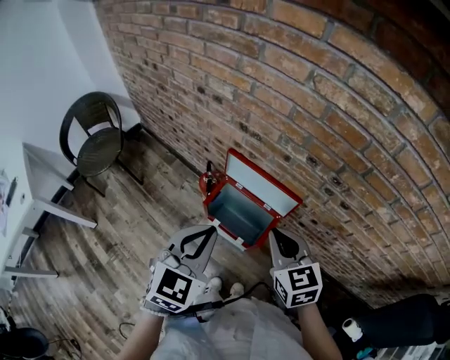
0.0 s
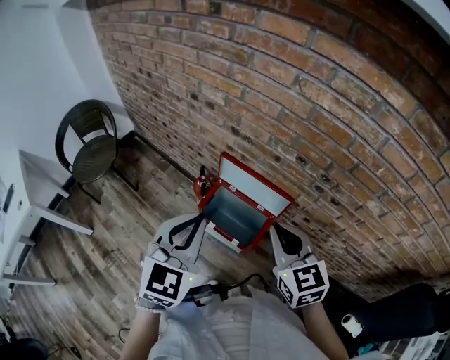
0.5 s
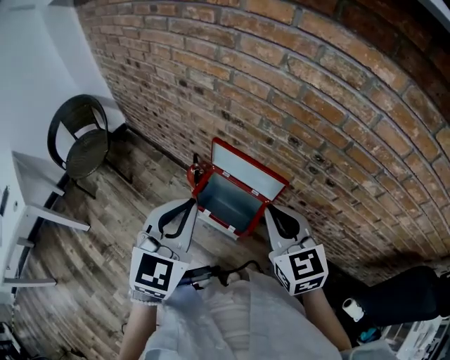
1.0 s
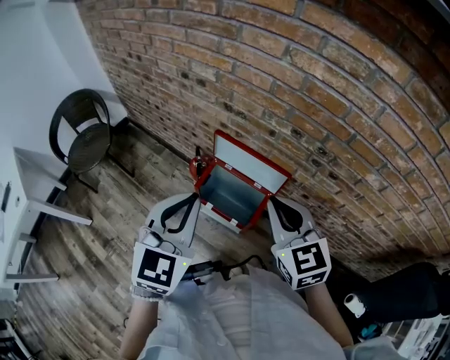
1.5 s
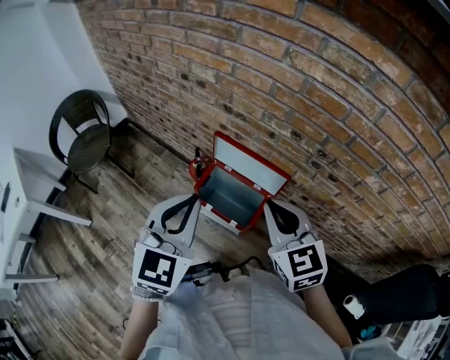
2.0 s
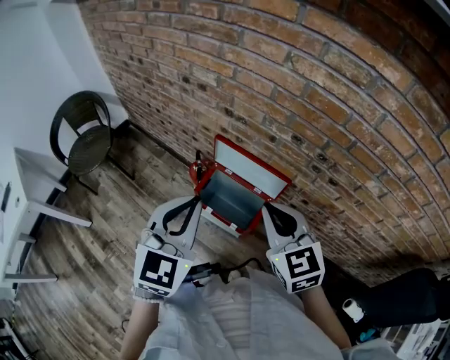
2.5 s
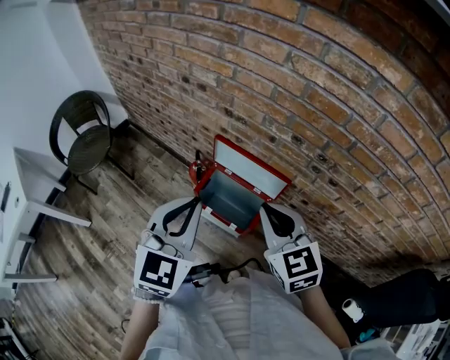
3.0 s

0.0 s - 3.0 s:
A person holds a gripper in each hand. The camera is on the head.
0.0 s - 1.5 s: The two grippers go about 5 cm upward.
1.5 s - 3.0 s: The grippers stay close to where they were, moving slightly.

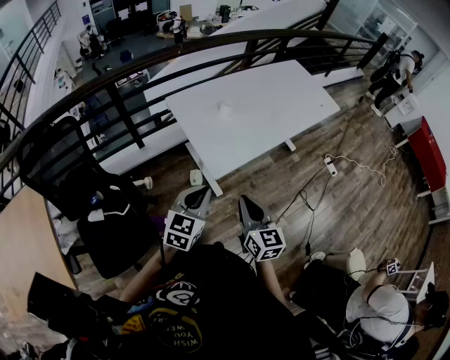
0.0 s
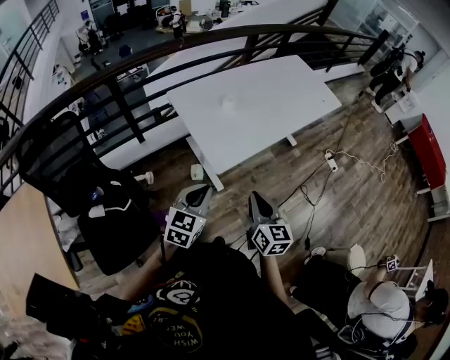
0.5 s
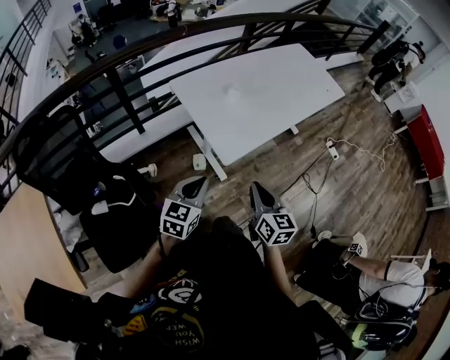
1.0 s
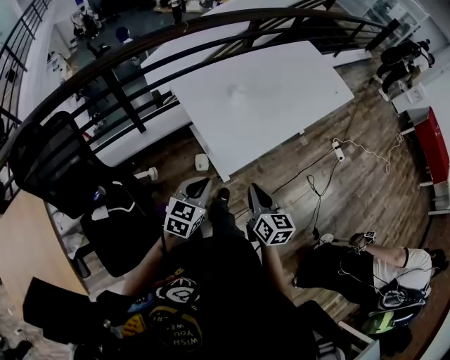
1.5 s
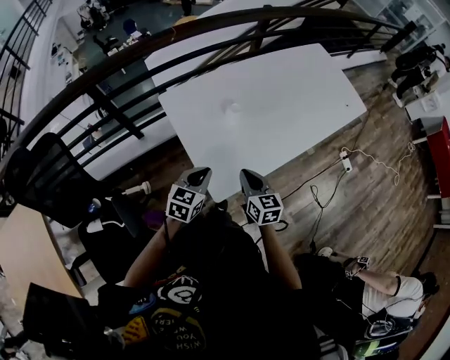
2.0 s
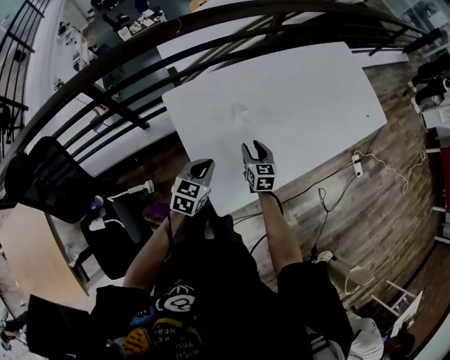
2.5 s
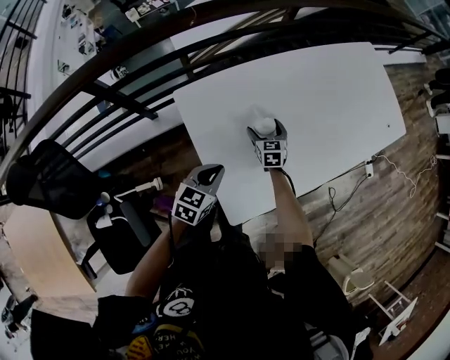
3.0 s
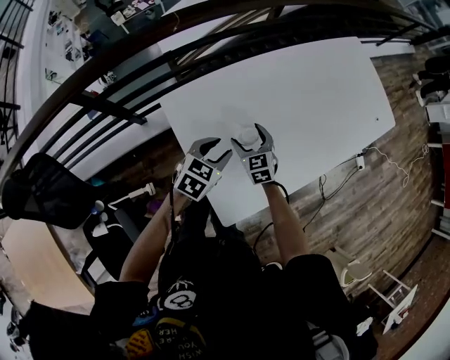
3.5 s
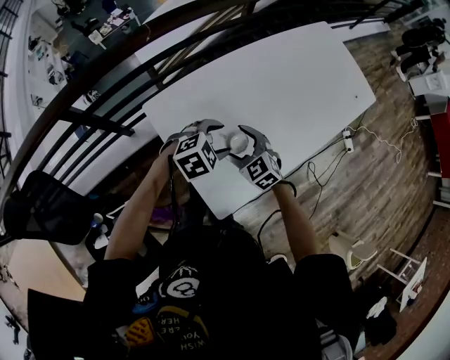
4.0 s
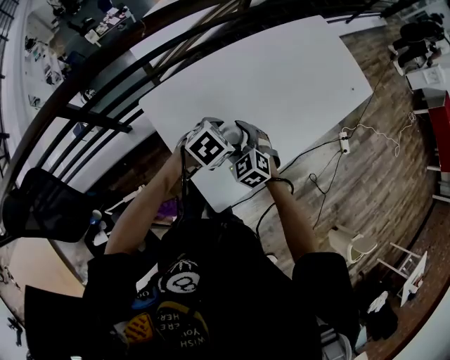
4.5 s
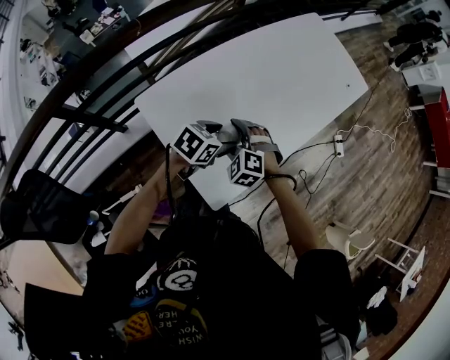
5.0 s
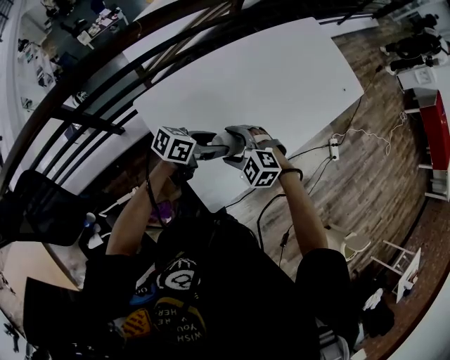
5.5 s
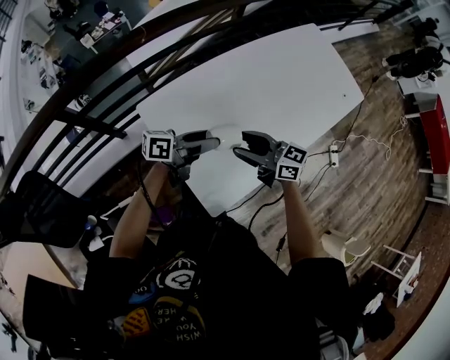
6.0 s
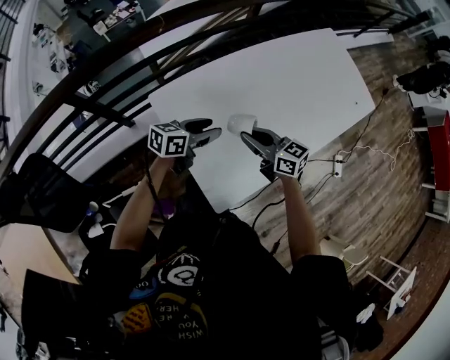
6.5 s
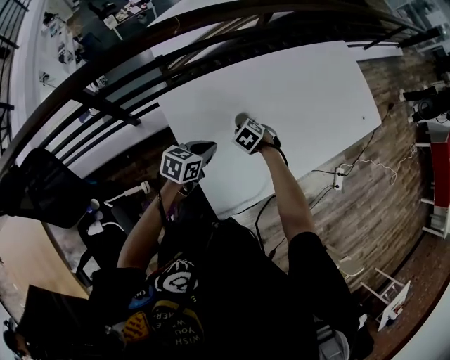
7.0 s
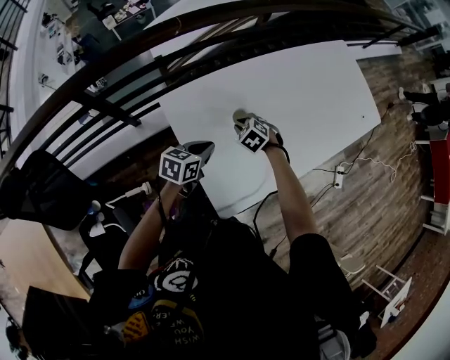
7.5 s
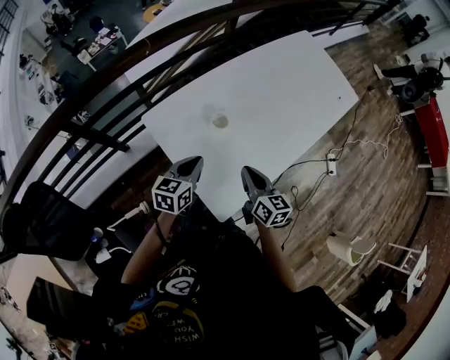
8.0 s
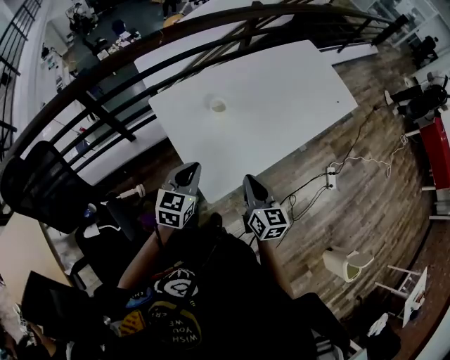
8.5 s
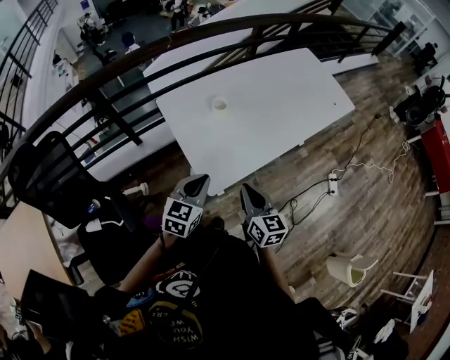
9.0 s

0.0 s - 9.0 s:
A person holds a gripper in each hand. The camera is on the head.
0.0 s - 2.0 s: The two grippers go approximately 30 cm forward and downward.
2.0 s - 4.5 s: The right gripper moves forward and to the left, some 20 cm, rotates around the line of its fingers by some 50 degrees, counterclockwise from behind, and opens its fingers; the left gripper travels forward by some 20 cm, changes its angle by approximately 40 degrees, and opens its fingers.
4.5 s - 7.0 s: The left gripper shifts by some 10 cm, rotates approximately 40 degrees, and closes its fingers. Meanwhile the right gripper goes roughly 10 cm downward, turns by about 30 degrees, and closes its fingers.
7.0 s - 9.0 s: The left gripper shifts by approximately 30 cm, and changes its angle by about 30 degrees. Meanwhile the right gripper changes place by approximately 50 cm, and angles its fingers upward, by about 60 degrees.

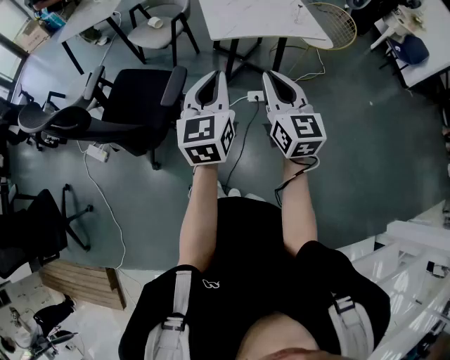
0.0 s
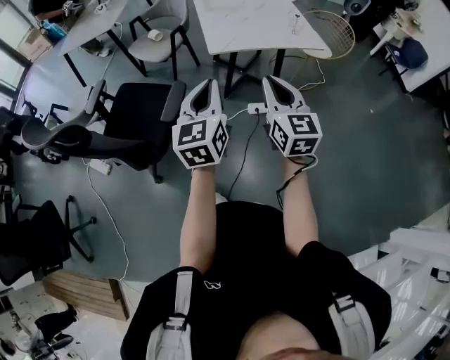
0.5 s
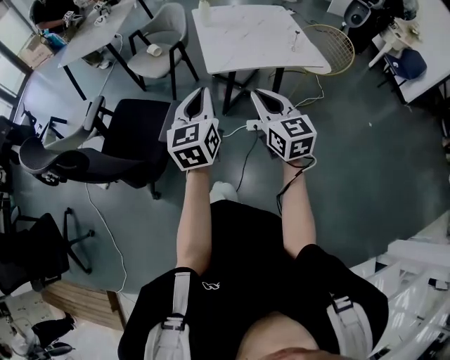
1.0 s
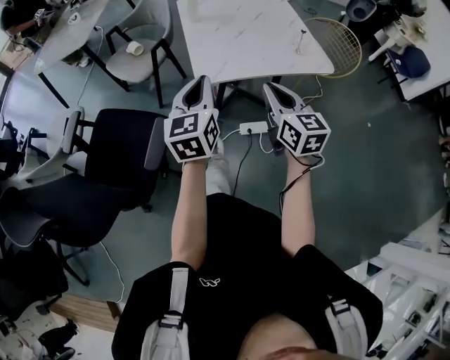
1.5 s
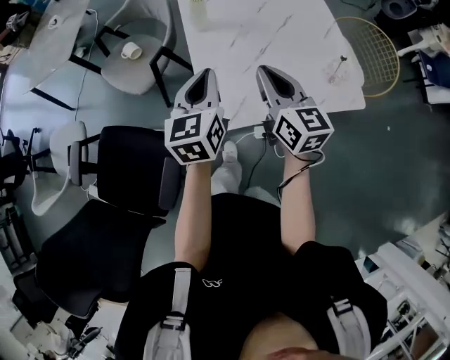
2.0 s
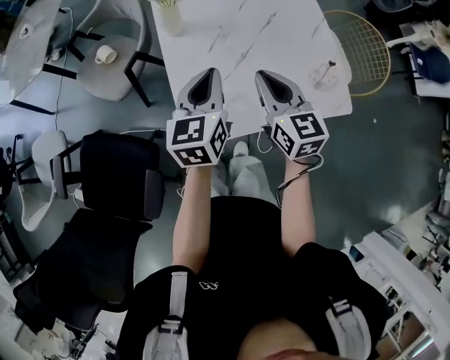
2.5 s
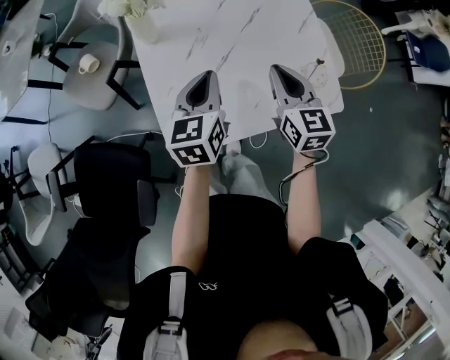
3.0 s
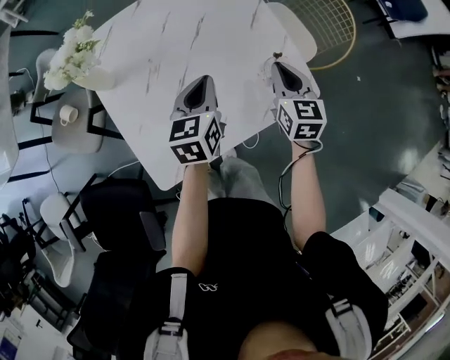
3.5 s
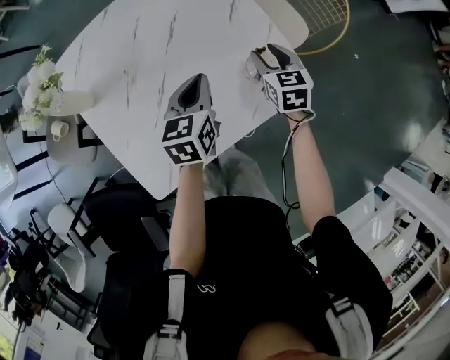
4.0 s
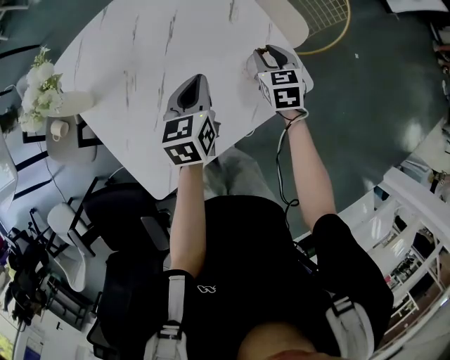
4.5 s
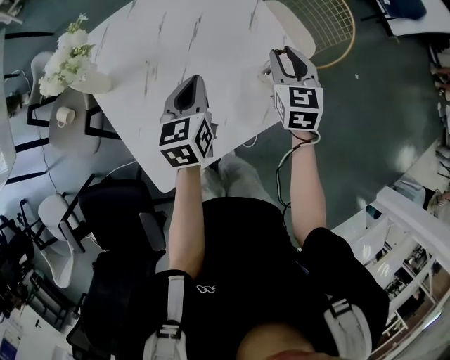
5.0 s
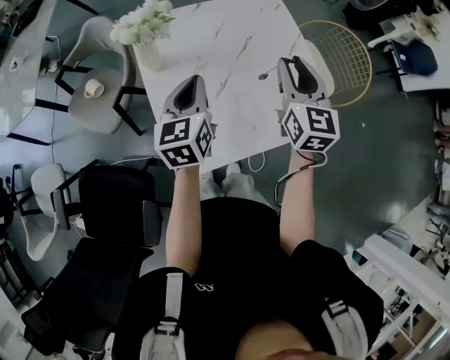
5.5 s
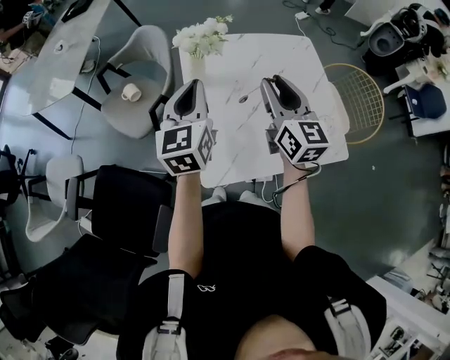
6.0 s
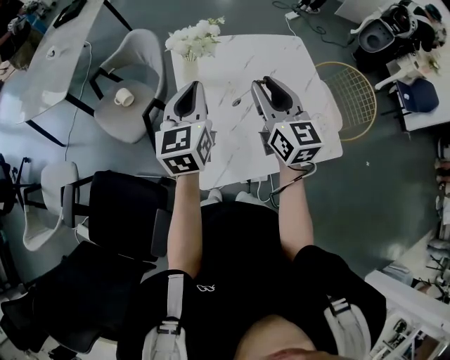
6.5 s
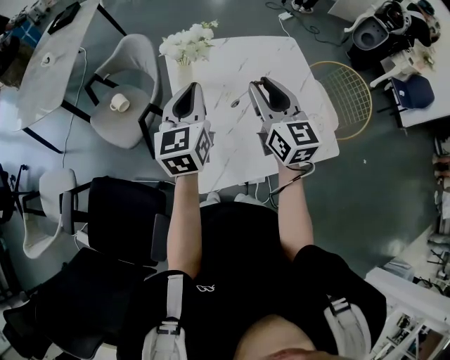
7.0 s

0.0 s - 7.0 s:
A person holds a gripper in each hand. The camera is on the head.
0.0 s - 2.0 s: Both grippers are carried forward, roughly 60 cm.
2.0 s - 3.5 s: The right gripper changes place by about 35 cm, and rotates some 30 degrees, while the left gripper shifts by some 30 cm, and swivels some 20 degrees.
3.5 s - 5.0 s: The right gripper reaches some 10 cm downward, then returns, and opens.
5.0 s - 7.0 s: The right gripper changes place by approximately 30 cm, and changes its angle by about 40 degrees. Meanwhile the left gripper changes place by some 25 cm, and swivels approximately 30 degrees.

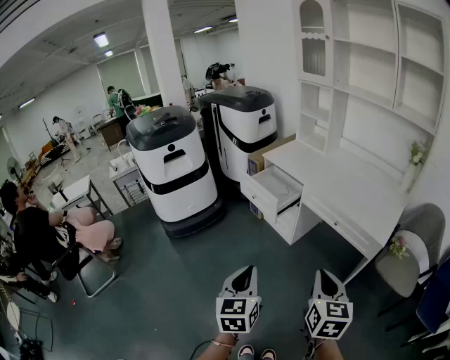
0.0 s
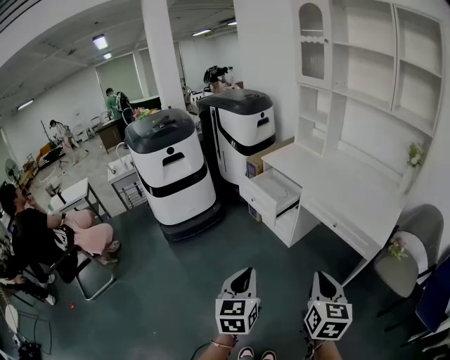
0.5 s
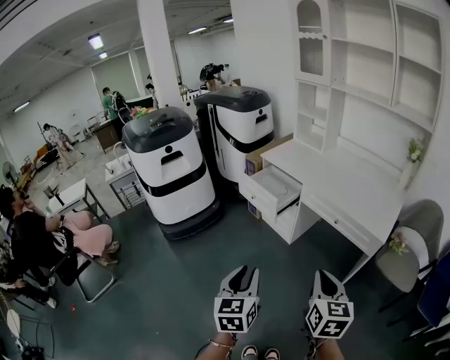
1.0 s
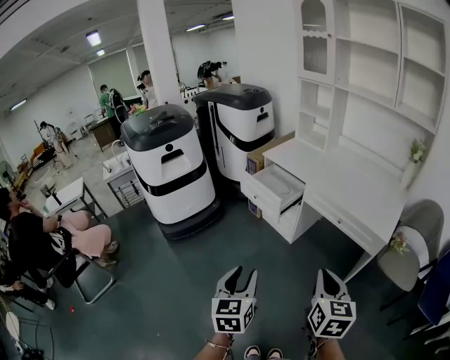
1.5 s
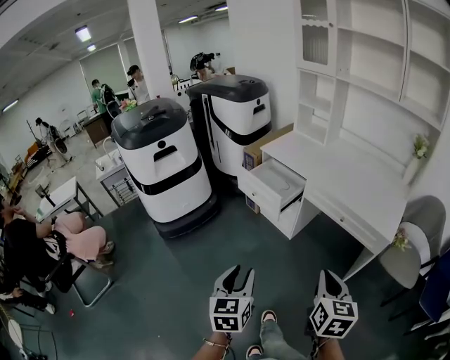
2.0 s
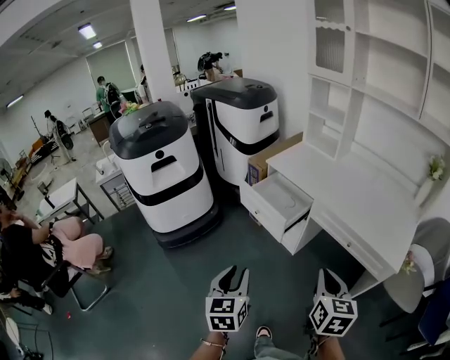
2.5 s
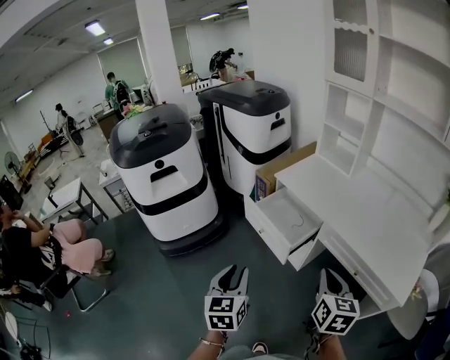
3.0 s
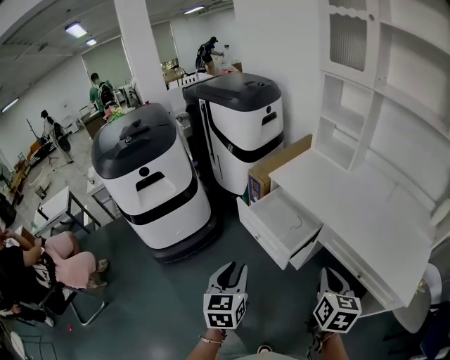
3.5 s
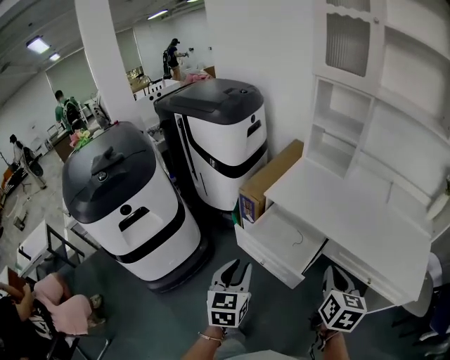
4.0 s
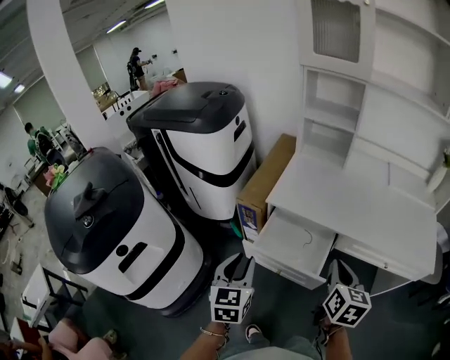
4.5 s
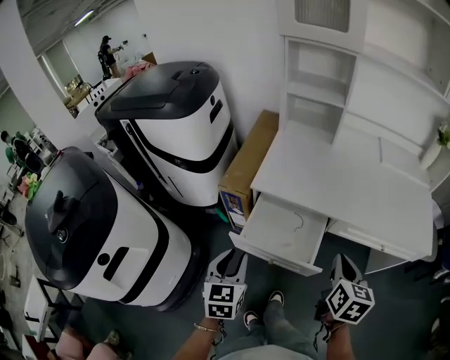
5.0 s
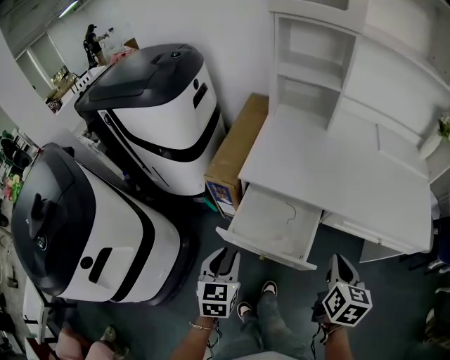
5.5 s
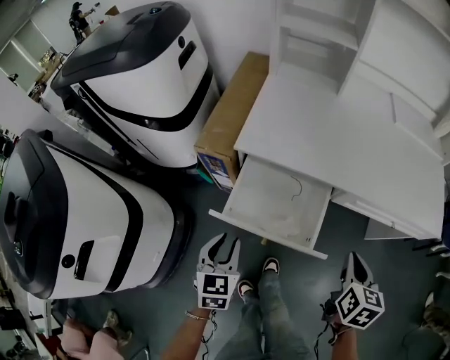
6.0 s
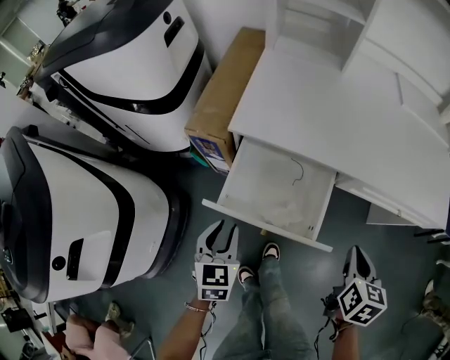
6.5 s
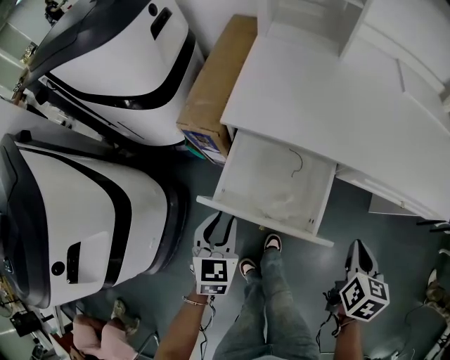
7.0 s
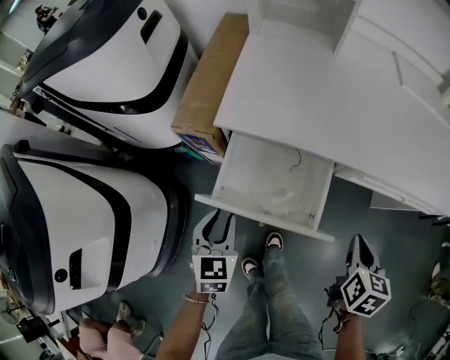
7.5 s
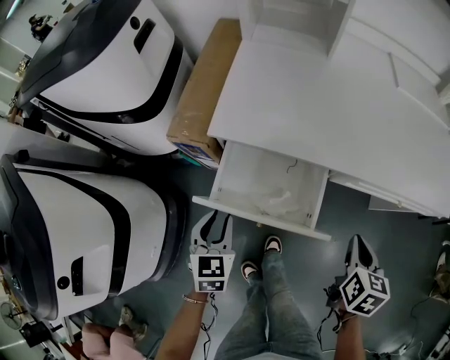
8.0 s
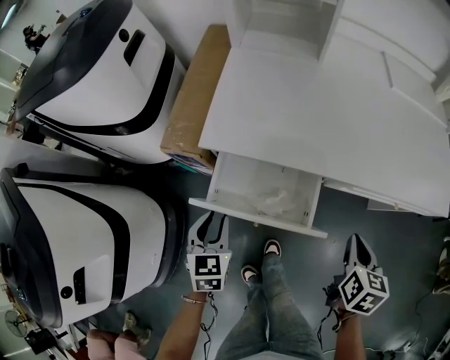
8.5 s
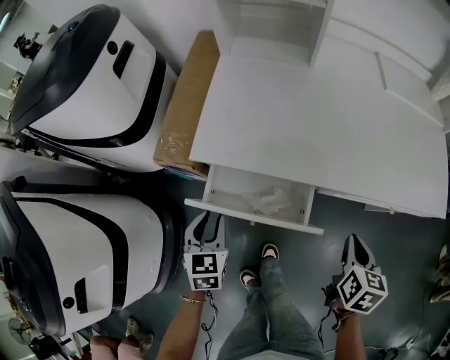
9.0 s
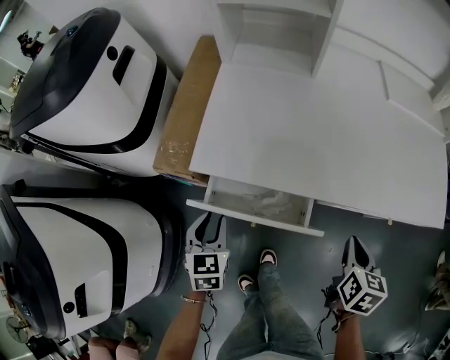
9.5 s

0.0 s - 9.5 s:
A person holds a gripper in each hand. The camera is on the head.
0.0 s - 2.0 s: The right gripper changes place by roughly 5 cm. The left gripper heads to the left, covering some 5 cm, and opens up.
2.0 s - 4.0 s: The pair of grippers is taken forward, about 40 cm.
4.0 s - 5.5 s: The right gripper travels downward by roughly 5 cm, and rotates about 20 degrees; the left gripper heads forward, downward and to the left, covering approximately 15 cm, and rotates roughly 20 degrees.
5.5 s - 7.5 s: The right gripper travels downward and to the right by about 15 cm. Meanwhile the left gripper goes roughly 10 cm downward and forward.
7.5 s - 9.5 s: The two grippers go approximately 10 cm forward.
